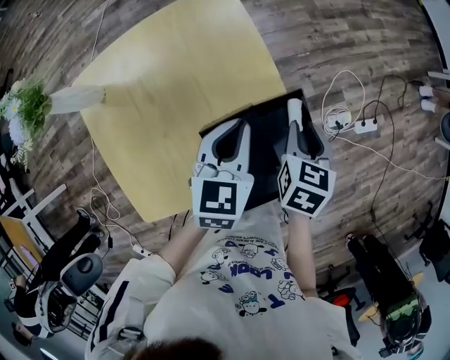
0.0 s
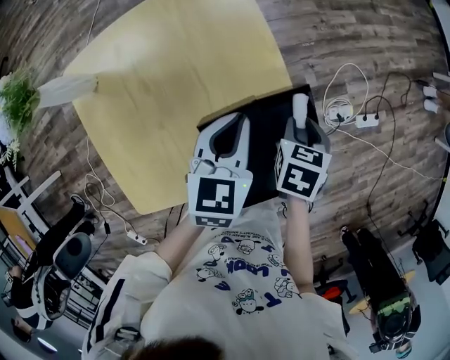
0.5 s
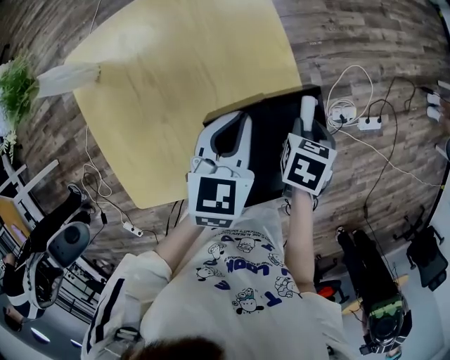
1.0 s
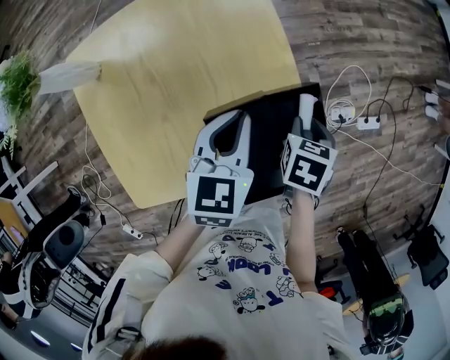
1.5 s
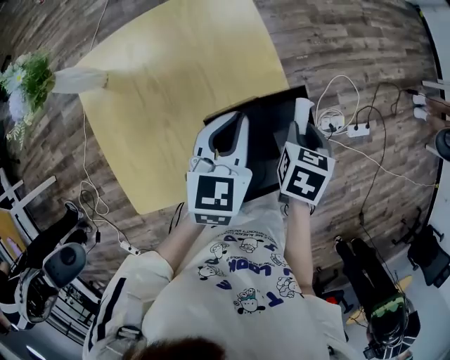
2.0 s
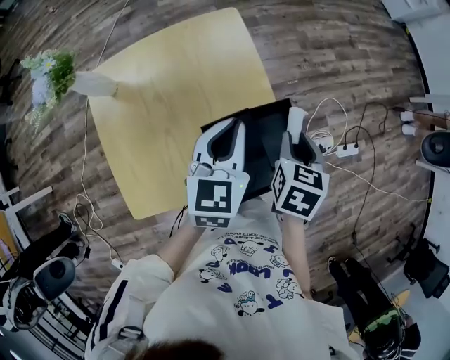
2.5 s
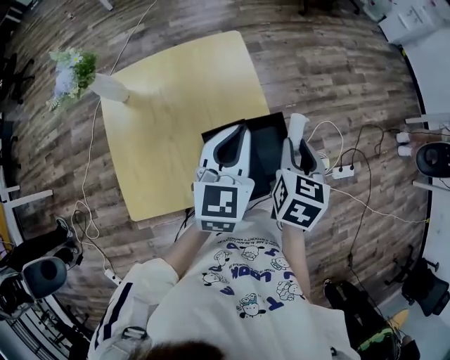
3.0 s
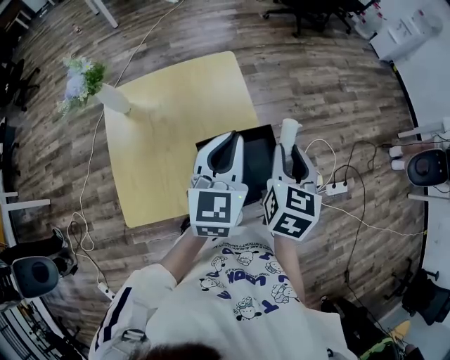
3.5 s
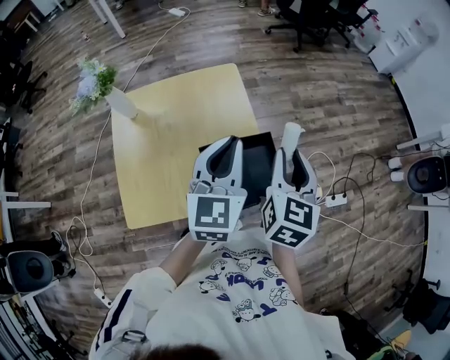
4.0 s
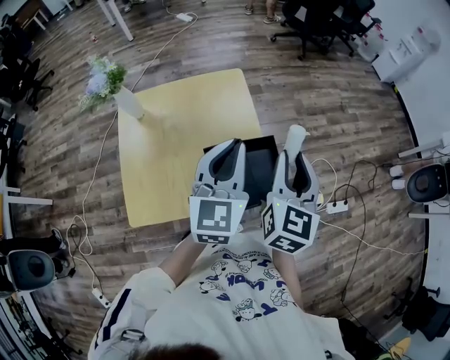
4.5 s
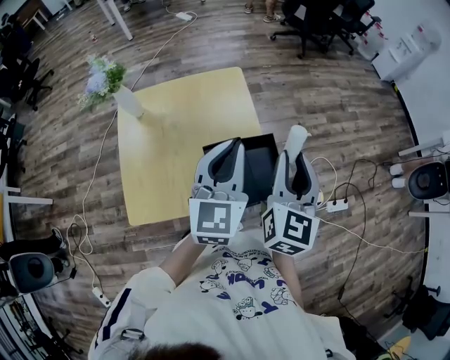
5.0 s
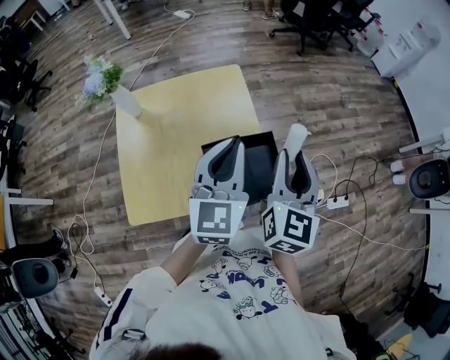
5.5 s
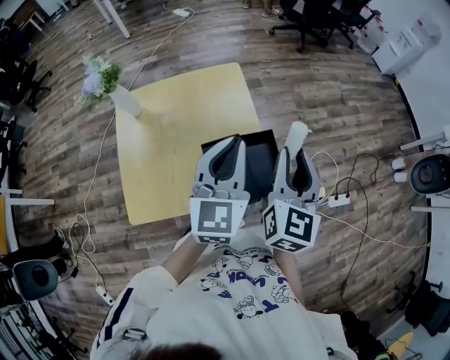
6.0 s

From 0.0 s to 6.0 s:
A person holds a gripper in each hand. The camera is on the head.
From 2.0 s to 4.0 s: Both grippers travel together upward, about 20 cm. The left gripper rotates roughly 30 degrees; the right gripper tilts its fingers some 40 degrees upward.
From 4.0 s to 6.0 s: The grippers move only a little.

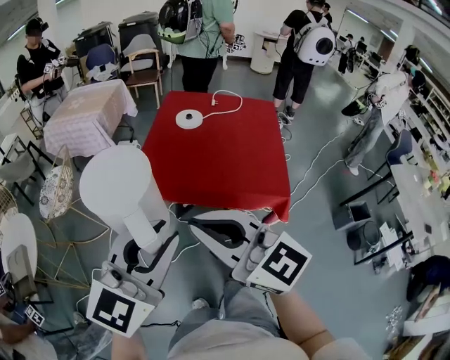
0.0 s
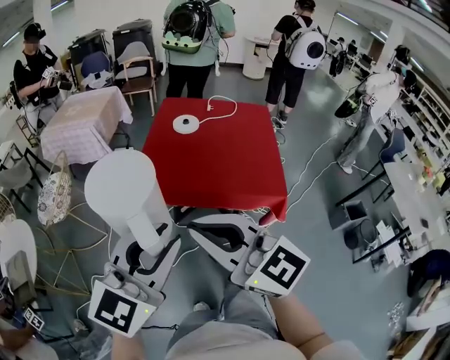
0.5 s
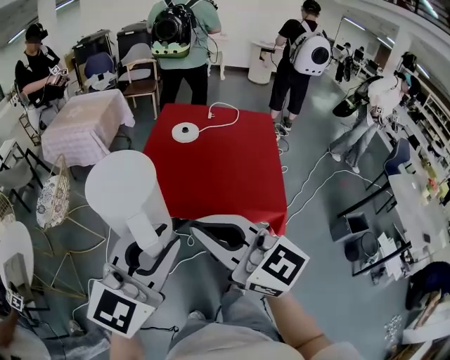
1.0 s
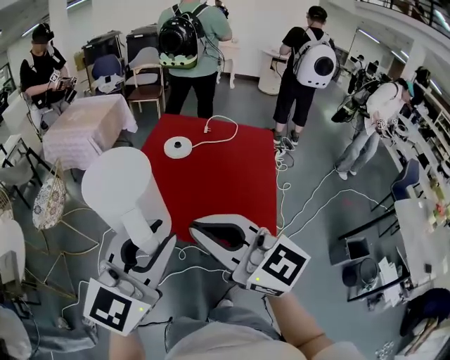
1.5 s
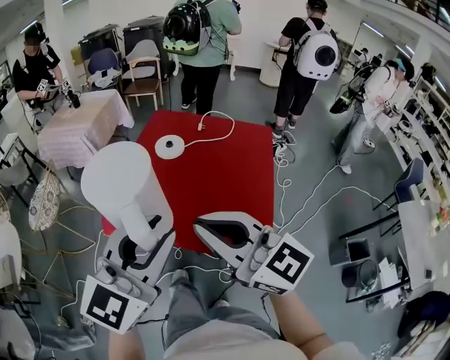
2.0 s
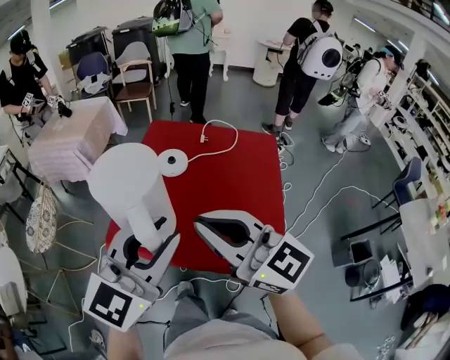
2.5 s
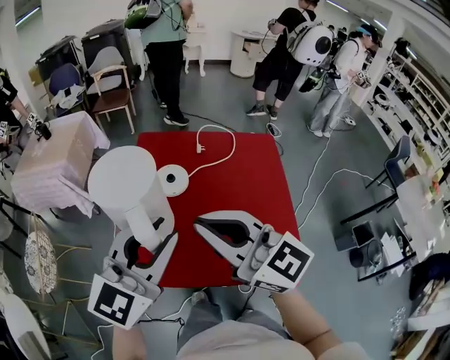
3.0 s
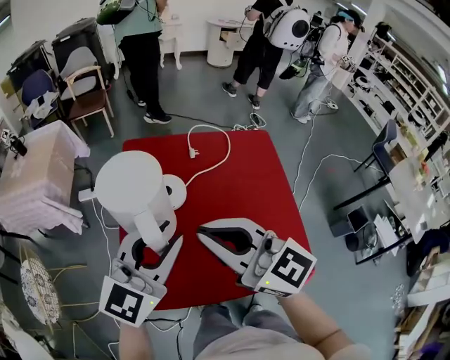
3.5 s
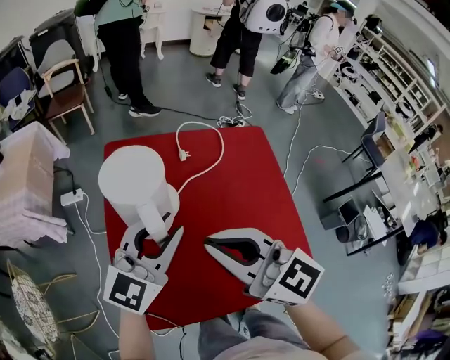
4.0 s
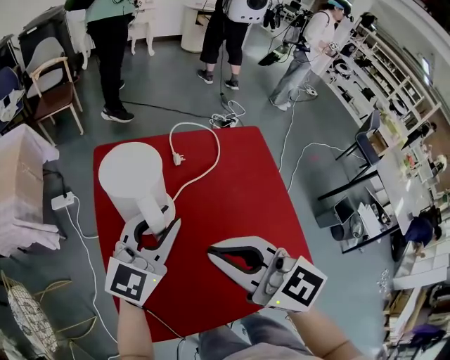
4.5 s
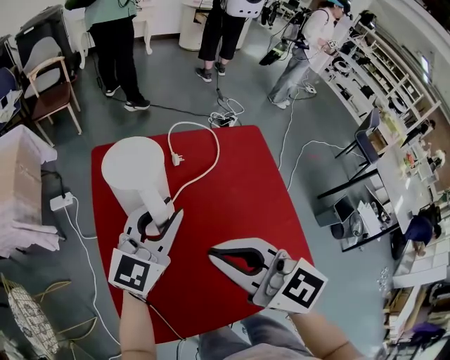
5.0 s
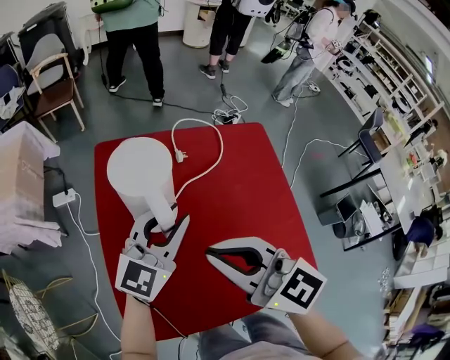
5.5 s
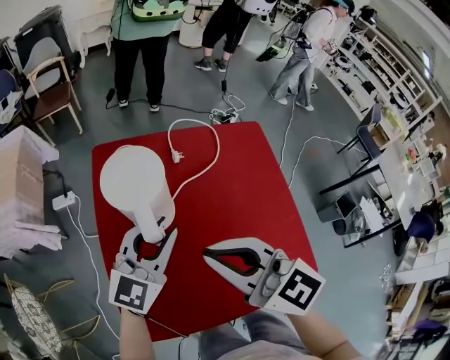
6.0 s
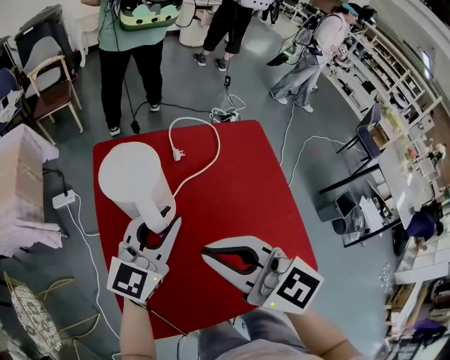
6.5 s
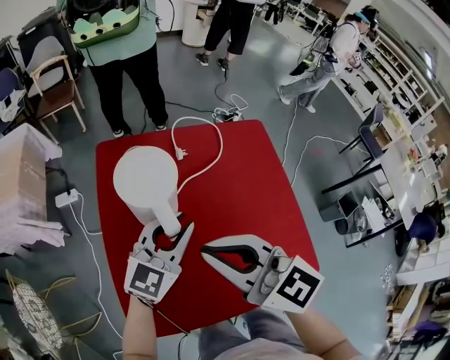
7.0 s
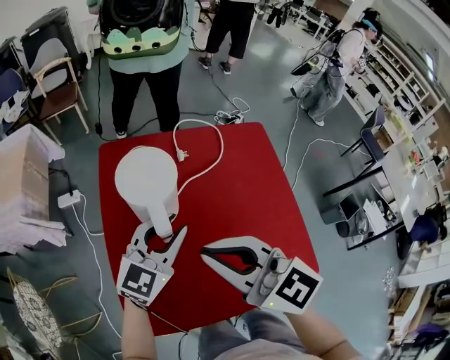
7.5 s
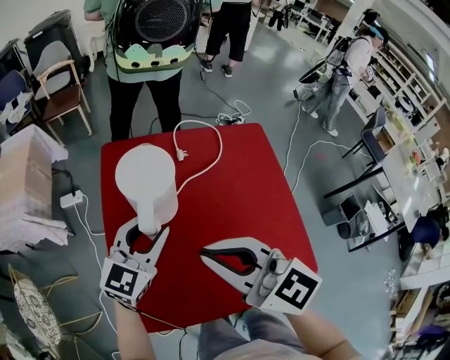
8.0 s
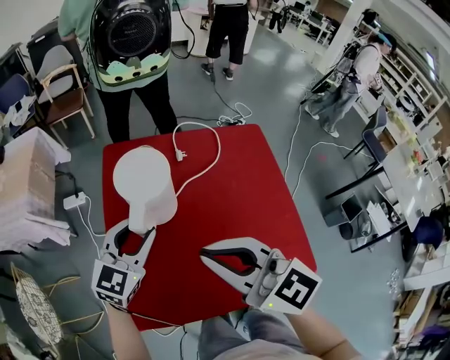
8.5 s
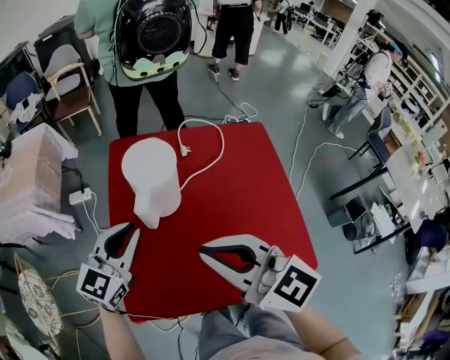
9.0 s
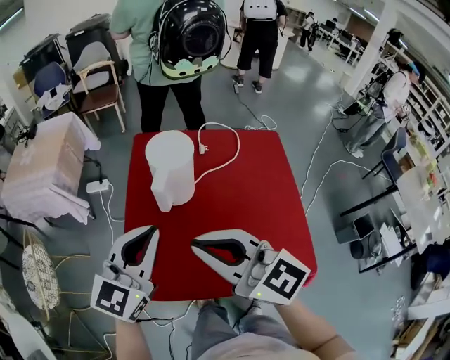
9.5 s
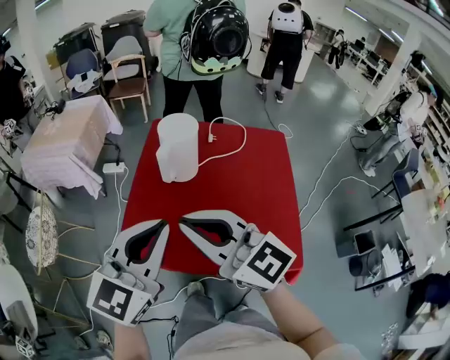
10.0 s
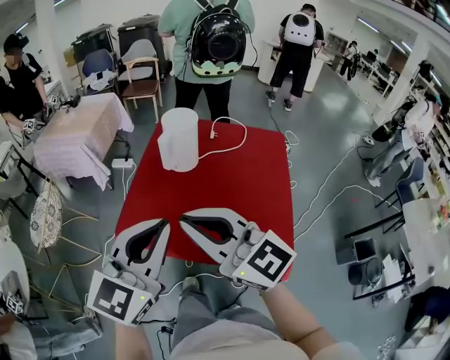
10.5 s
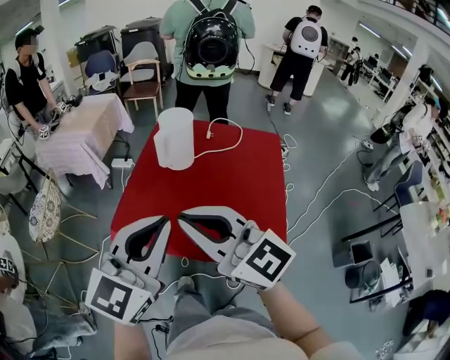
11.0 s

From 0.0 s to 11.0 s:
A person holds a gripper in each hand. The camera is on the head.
From 0.0 s to 2.0 s: The grippers both shift to the right and forward by about 20 cm.
From 2.0 s to 3.5 s: Both grippers move forward, roughly 30 cm. The left gripper swivels approximately 20 degrees.
From 3.5 s to 5.5 s: The right gripper goes approximately 10 cm forward and downward. Meanwhile the left gripper is displaced forward and downward by approximately 20 cm.
From 5.5 s to 7.5 s: The grippers move only a little.
From 7.5 s to 9.0 s: The left gripper shifts roughly 10 cm to the left; the right gripper travels backward by approximately 5 cm.
From 9.0 s to 11.0 s: The left gripper travels backward and upward by some 35 cm, and swivels some 20 degrees; the right gripper moves backward, some 20 cm, and turns by about 20 degrees.

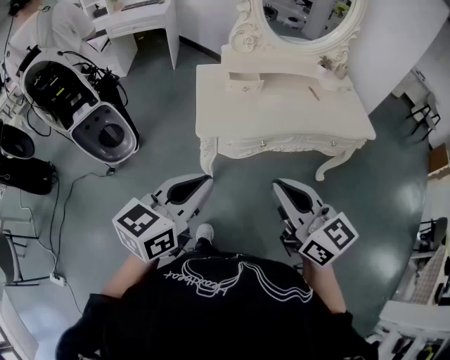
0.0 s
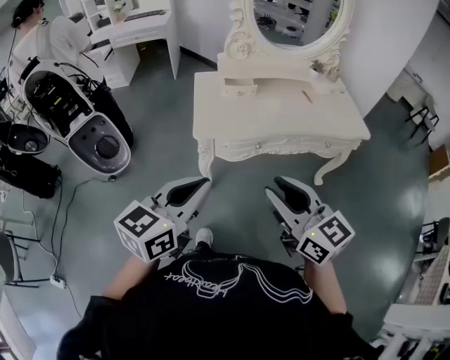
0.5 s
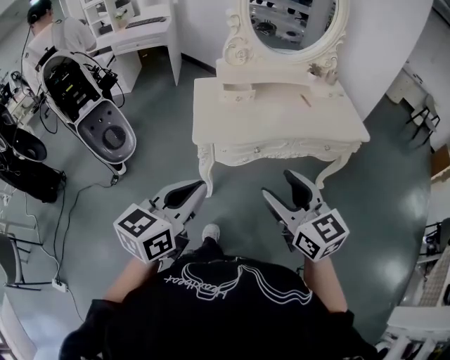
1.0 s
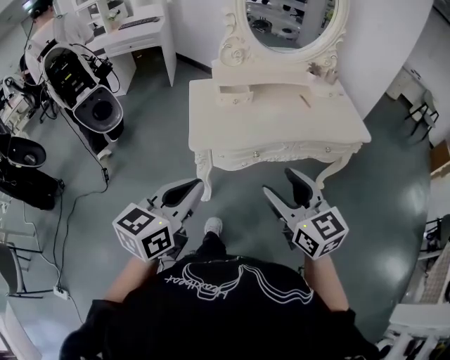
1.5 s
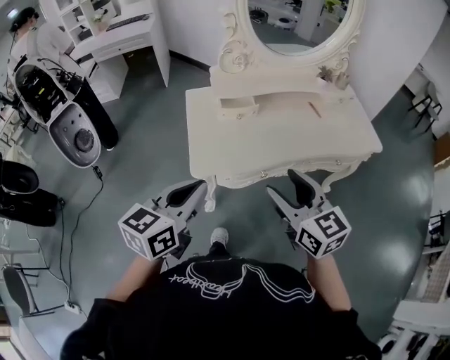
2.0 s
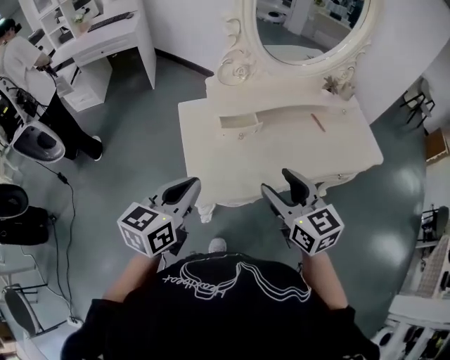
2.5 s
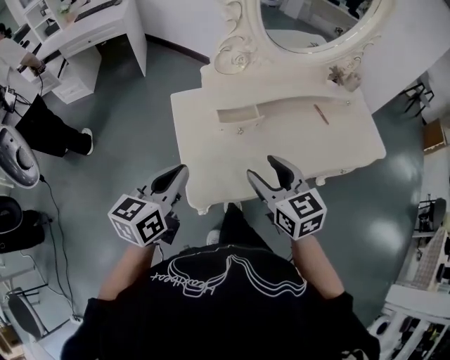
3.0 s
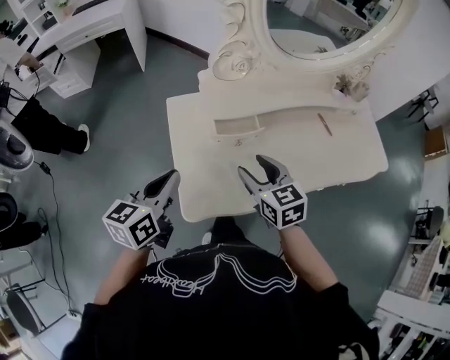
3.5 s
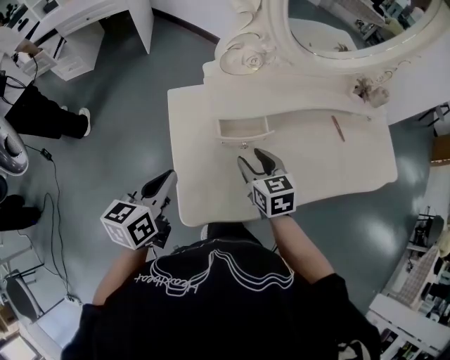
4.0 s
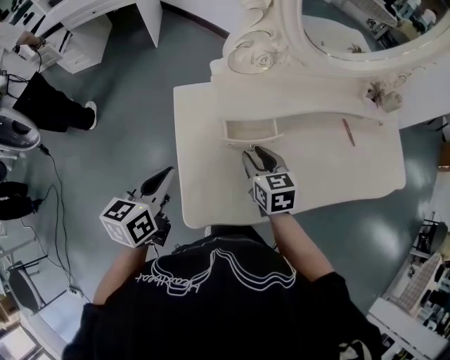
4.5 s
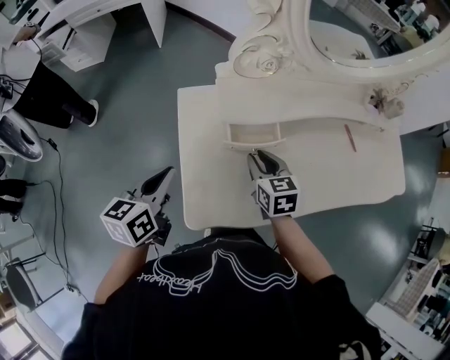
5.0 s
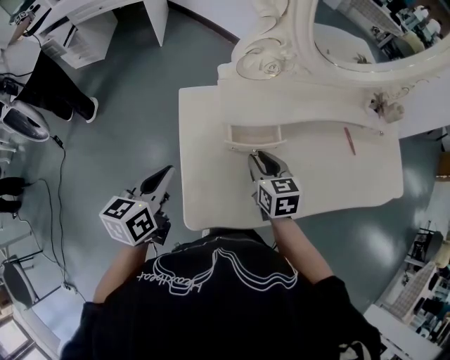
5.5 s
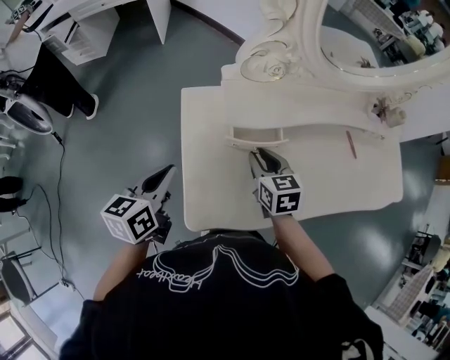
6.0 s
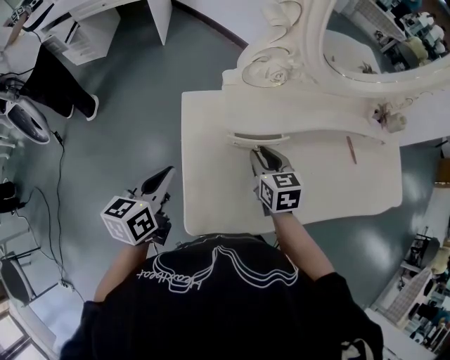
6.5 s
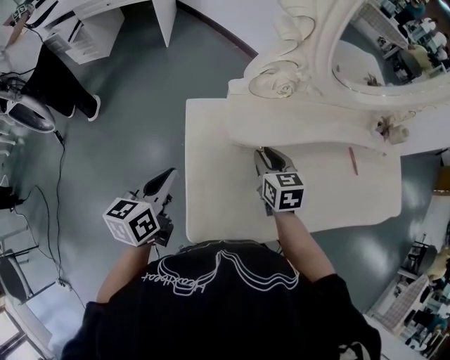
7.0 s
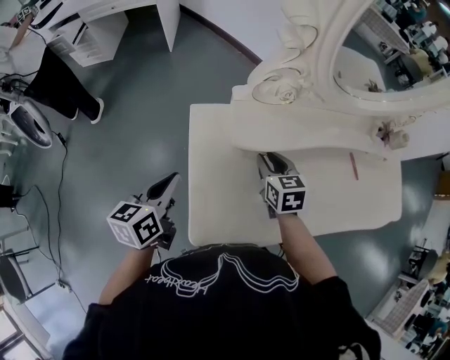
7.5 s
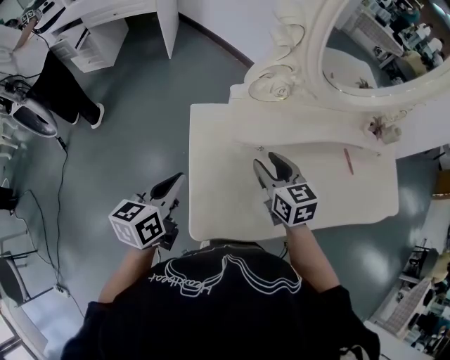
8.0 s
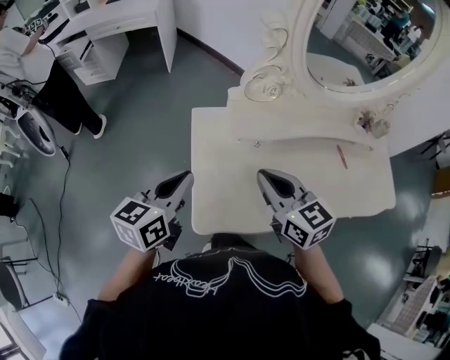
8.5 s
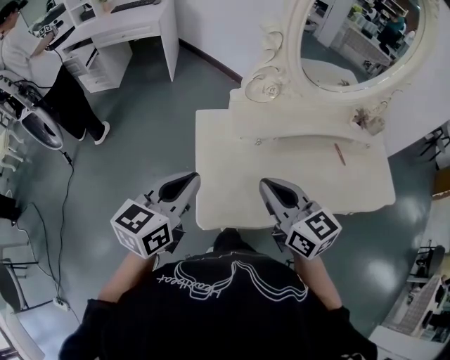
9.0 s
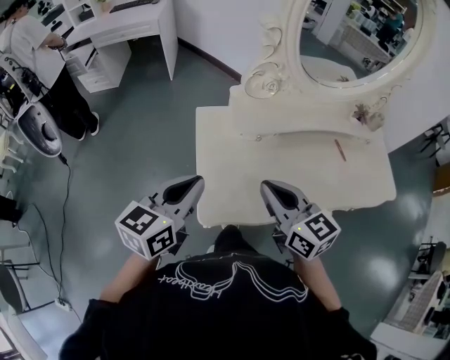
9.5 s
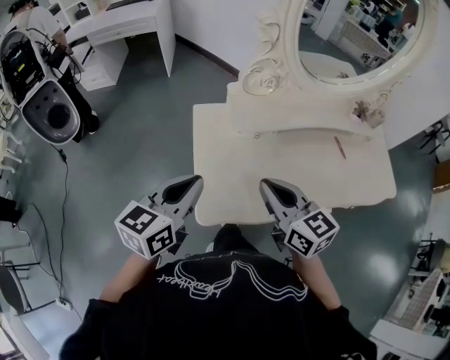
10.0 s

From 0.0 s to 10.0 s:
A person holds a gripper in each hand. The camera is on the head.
From 0.0 s to 2.0 s: Both grippers move forward, approximately 15 cm. The right gripper opens its fingers.
From 2.0 s to 4.0 s: The right gripper goes approximately 35 cm forward and downward, and swivels about 20 degrees. Meanwhile the left gripper moves forward, downward and to the left, about 30 cm.
From 4.0 s to 6.0 s: The grippers stay close to where they were, moving slightly.
From 6.0 s to 8.0 s: The right gripper moves upward, roughly 5 cm.
From 8.0 s to 10.0 s: The right gripper travels backward and upward by about 20 cm, and closes. Meanwhile the left gripper goes about 10 cm upward and backward.
